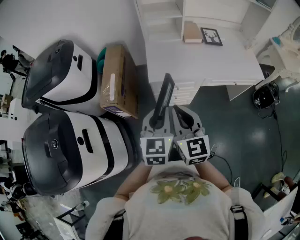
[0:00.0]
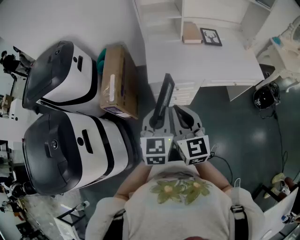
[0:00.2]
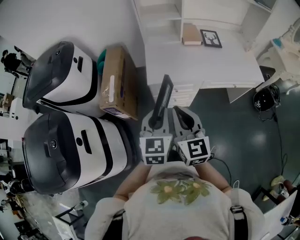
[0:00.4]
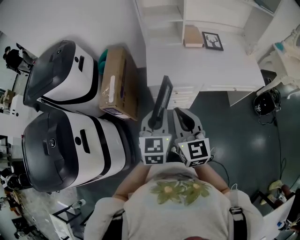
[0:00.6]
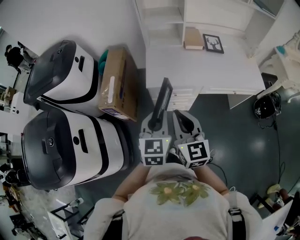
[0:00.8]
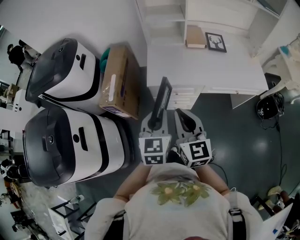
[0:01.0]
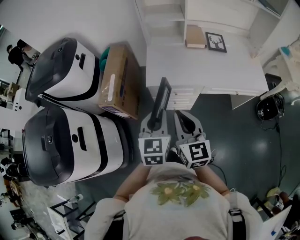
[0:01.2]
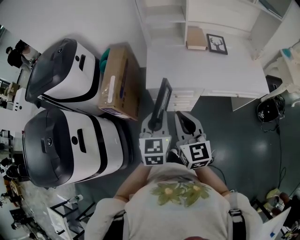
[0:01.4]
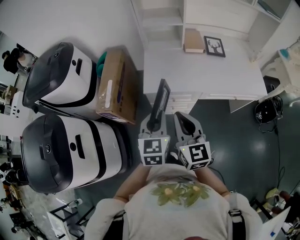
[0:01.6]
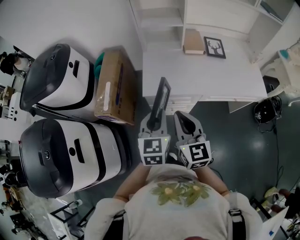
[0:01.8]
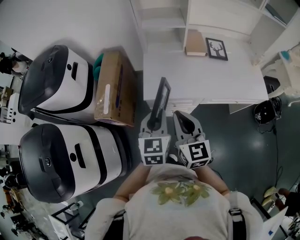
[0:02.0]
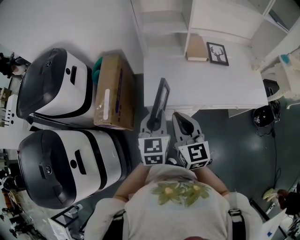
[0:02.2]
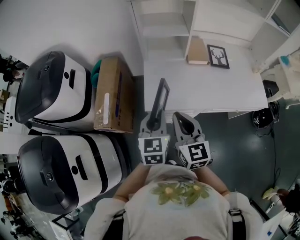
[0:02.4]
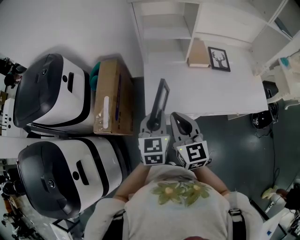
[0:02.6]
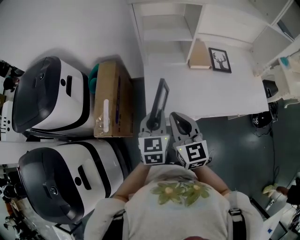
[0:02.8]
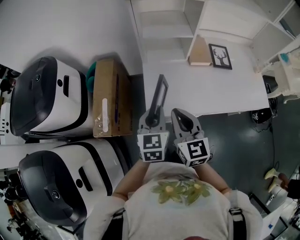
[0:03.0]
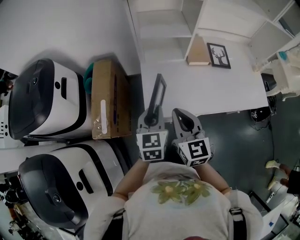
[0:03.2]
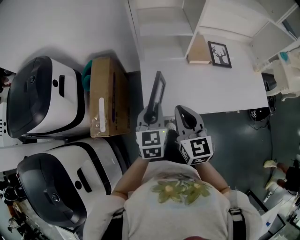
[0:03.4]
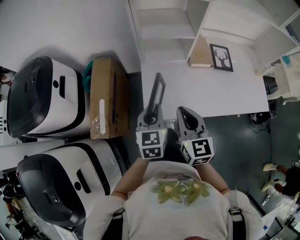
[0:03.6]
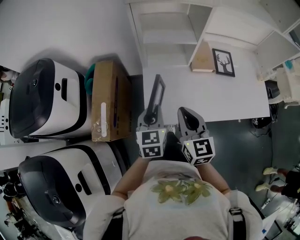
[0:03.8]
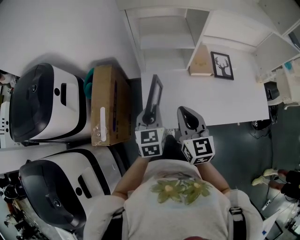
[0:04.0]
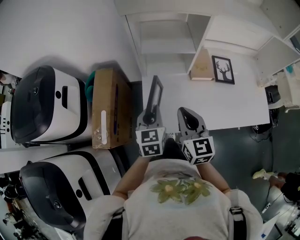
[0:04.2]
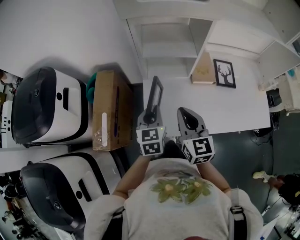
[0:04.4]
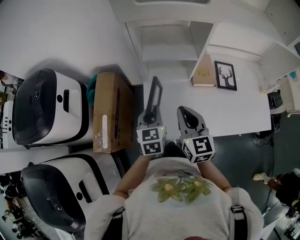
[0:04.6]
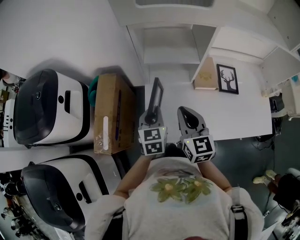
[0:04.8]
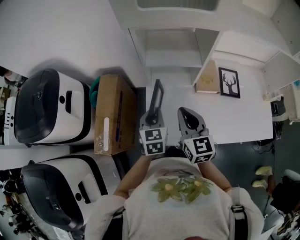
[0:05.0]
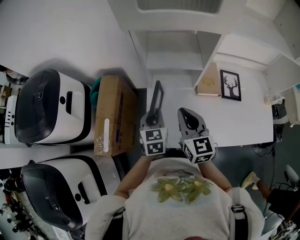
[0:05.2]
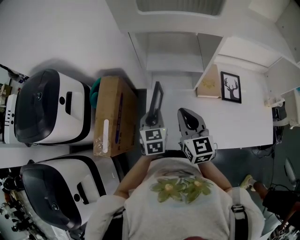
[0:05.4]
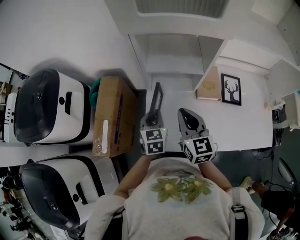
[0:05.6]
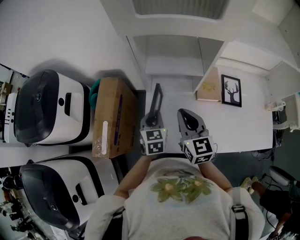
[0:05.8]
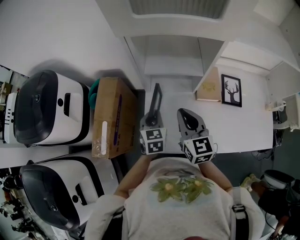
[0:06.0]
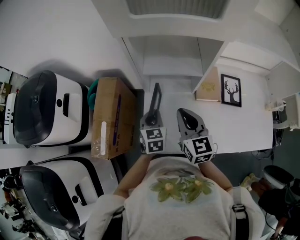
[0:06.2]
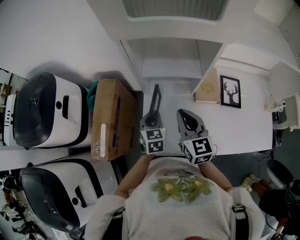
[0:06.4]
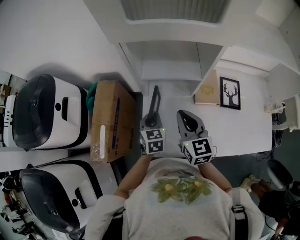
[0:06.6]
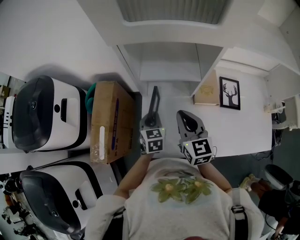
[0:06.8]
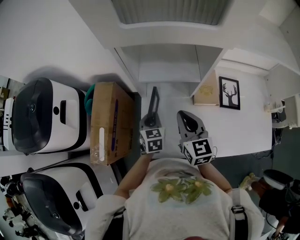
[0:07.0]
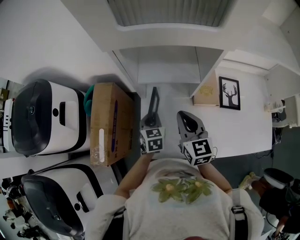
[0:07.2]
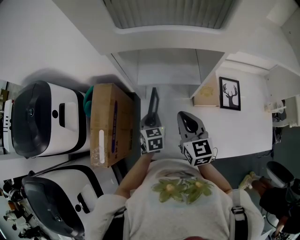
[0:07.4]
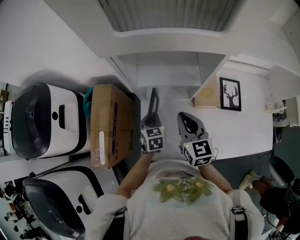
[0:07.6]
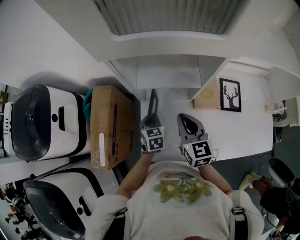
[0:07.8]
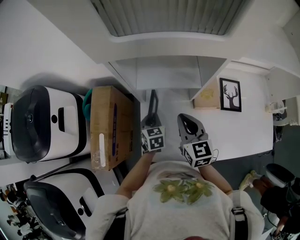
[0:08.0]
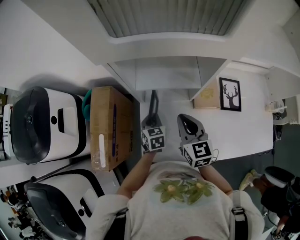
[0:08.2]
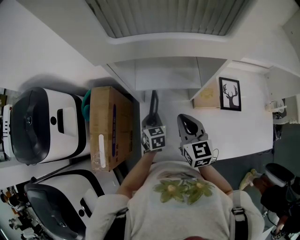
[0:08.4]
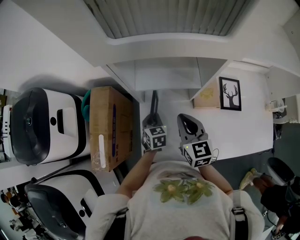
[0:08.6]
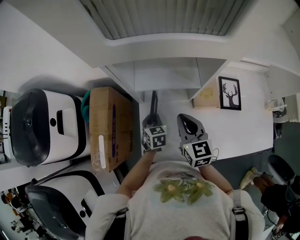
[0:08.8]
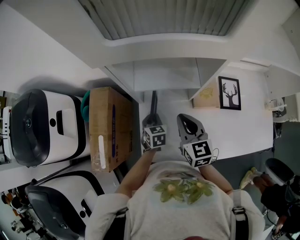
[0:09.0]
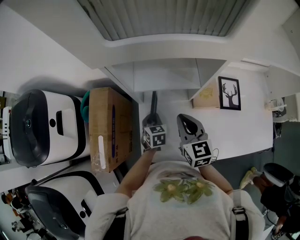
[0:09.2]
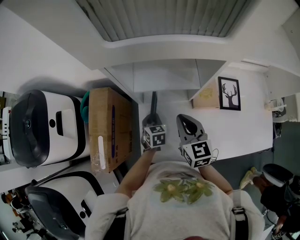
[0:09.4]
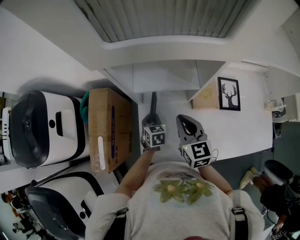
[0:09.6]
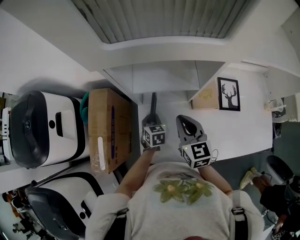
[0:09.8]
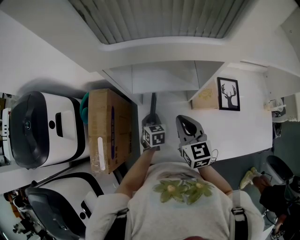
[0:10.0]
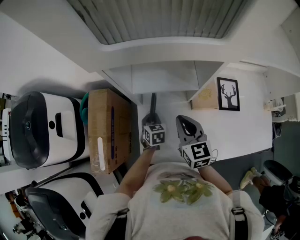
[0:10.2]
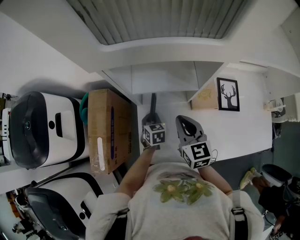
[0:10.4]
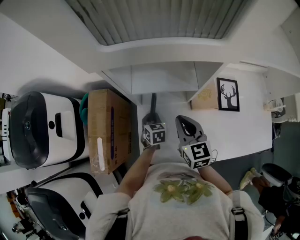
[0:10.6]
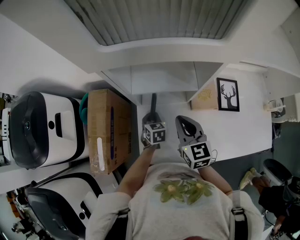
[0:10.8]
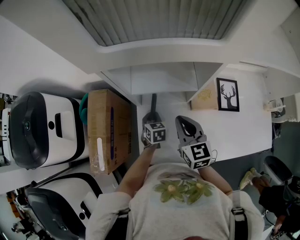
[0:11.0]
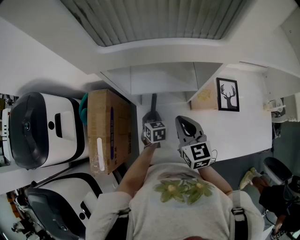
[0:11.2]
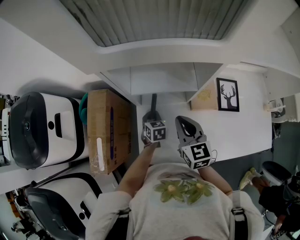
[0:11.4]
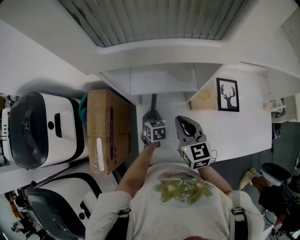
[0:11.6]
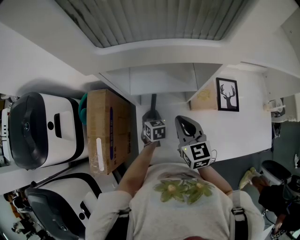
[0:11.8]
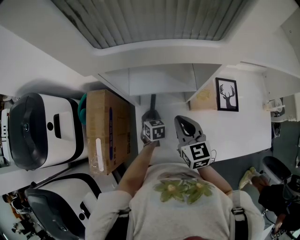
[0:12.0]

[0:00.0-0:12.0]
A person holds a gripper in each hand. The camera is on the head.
0:00.0 to 0:01.6: The right gripper moves to the right and forward, roughly 10 cm, while the left gripper is displaced forward and to the right by roughly 10 cm.
0:01.6 to 0:03.0: The two grippers go approximately 20 cm forward.
0:03.0 to 0:04.4: The grippers both shift forward by roughly 10 cm.
0:04.4 to 0:06.0: The left gripper shifts approximately 10 cm forward and downward. Meanwhile the right gripper heads forward, covering roughly 10 cm.
0:06.0 to 0:07.6: The right gripper changes place by roughly 5 cm. The left gripper travels downward and forward by roughly 10 cm.
0:07.6 to 0:09.0: The left gripper changes place by about 5 cm.
0:09.0 to 0:12.0: There are only small adjustments of the grippers.

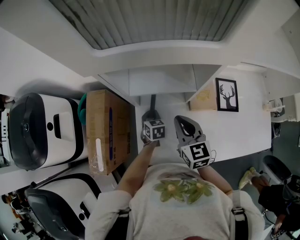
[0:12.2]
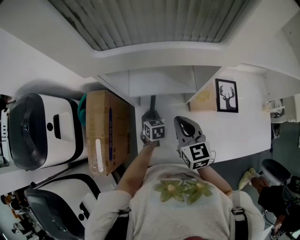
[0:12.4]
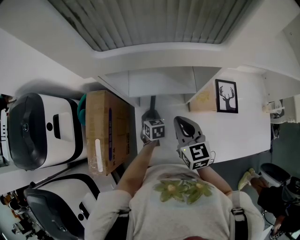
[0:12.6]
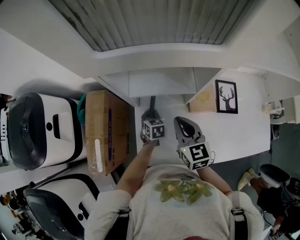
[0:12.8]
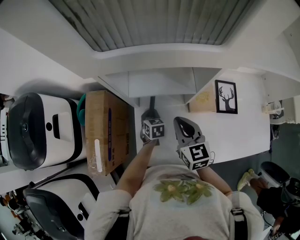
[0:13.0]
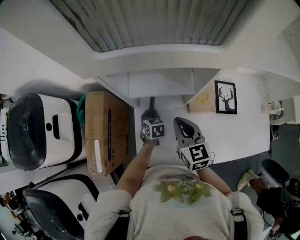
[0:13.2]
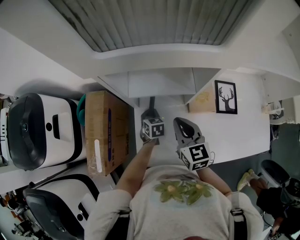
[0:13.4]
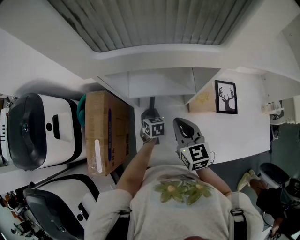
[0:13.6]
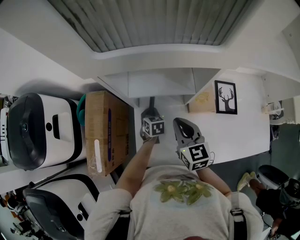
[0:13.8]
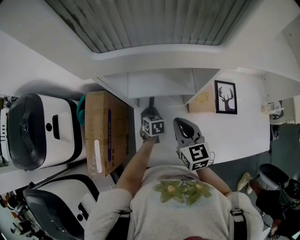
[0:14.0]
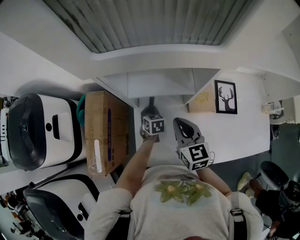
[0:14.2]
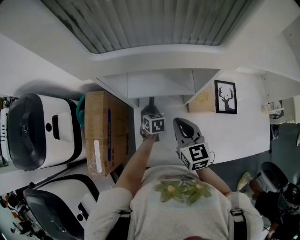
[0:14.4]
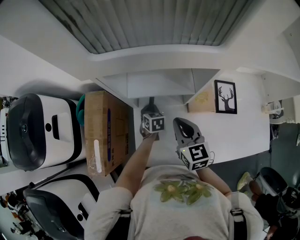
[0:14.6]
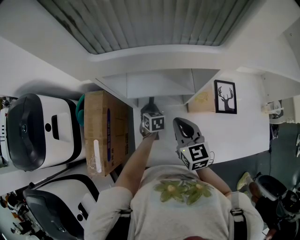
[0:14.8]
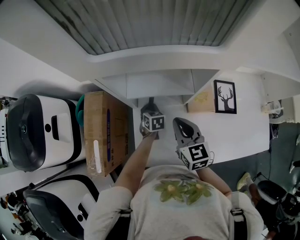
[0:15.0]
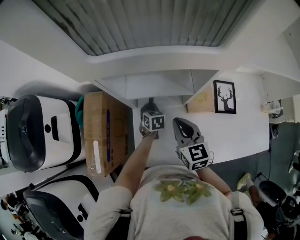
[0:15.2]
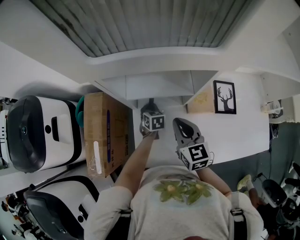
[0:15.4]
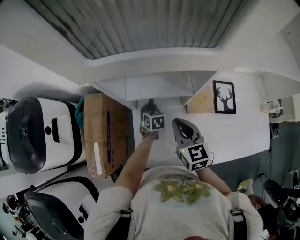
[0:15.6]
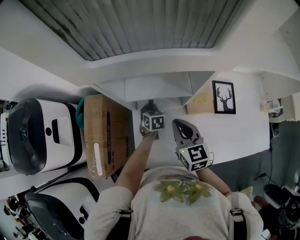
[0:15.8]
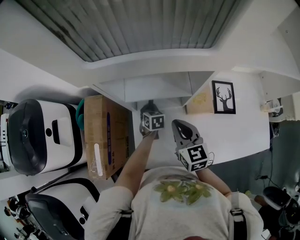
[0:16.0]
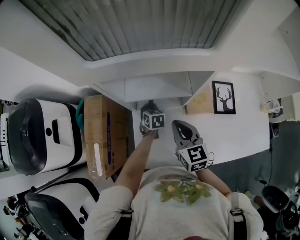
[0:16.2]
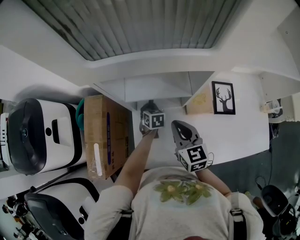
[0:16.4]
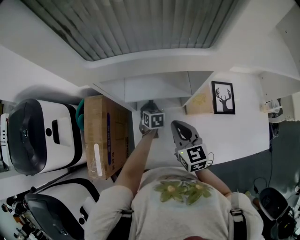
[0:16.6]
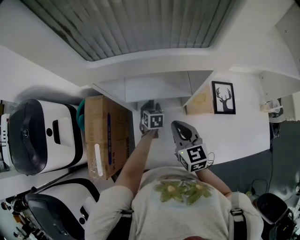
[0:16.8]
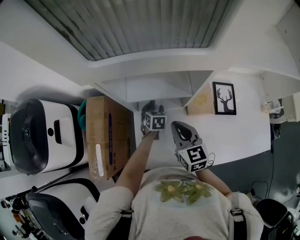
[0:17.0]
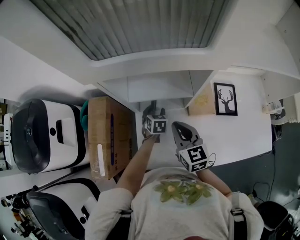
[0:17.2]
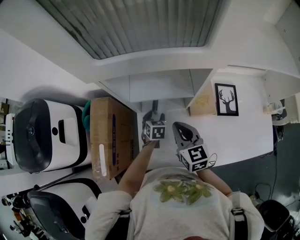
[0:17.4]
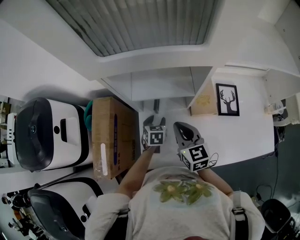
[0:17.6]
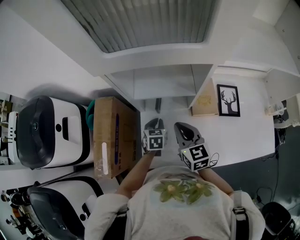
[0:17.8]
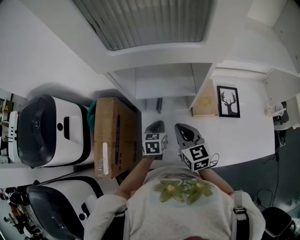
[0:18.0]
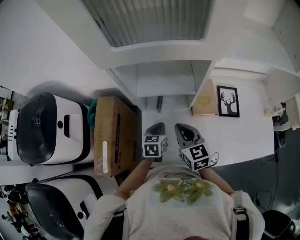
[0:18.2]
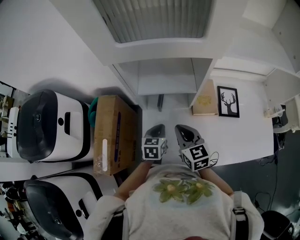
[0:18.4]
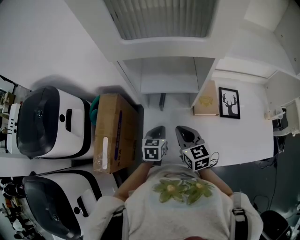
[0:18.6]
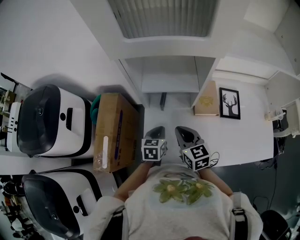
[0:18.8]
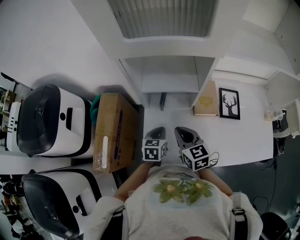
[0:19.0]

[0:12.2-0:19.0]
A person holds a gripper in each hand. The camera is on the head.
0:12.2 to 0:16.2: There are only small adjustments of the grippers.
0:16.2 to 0:17.6: The left gripper travels backward by roughly 5 cm, and opens its fingers.
0:17.6 to 0:19.0: The left gripper travels backward and upward by roughly 10 cm, and closes its fingers, while the right gripper is displaced backward by some 5 cm.

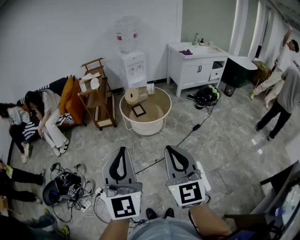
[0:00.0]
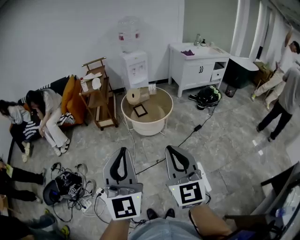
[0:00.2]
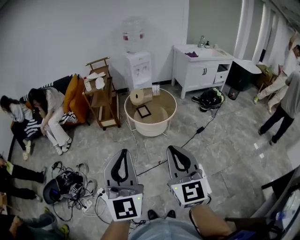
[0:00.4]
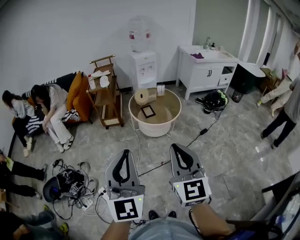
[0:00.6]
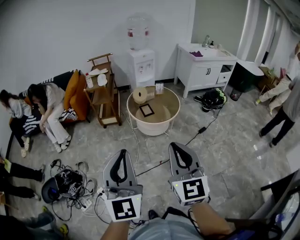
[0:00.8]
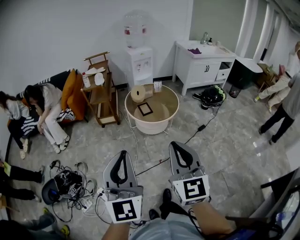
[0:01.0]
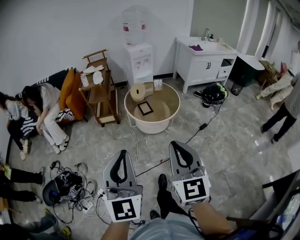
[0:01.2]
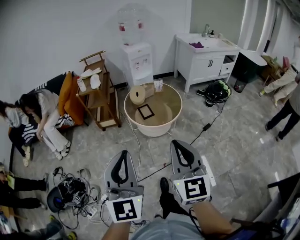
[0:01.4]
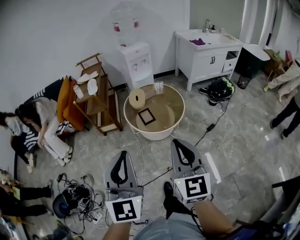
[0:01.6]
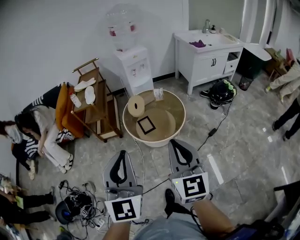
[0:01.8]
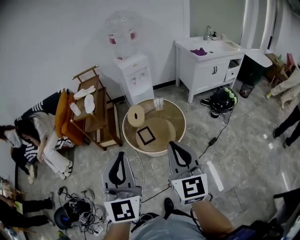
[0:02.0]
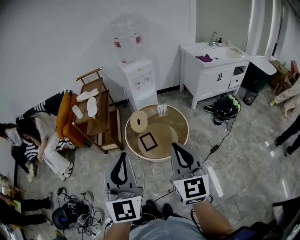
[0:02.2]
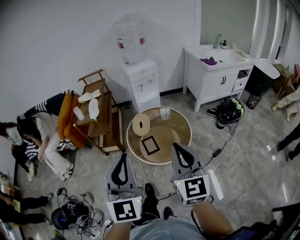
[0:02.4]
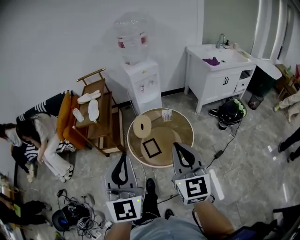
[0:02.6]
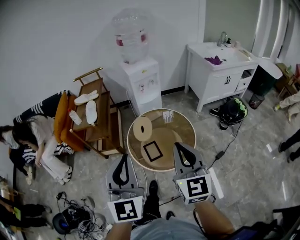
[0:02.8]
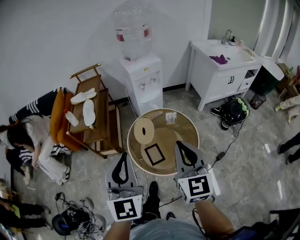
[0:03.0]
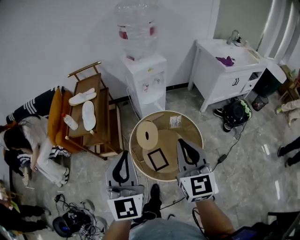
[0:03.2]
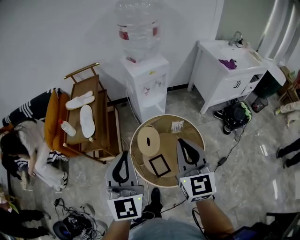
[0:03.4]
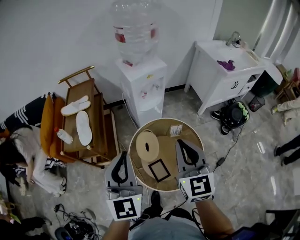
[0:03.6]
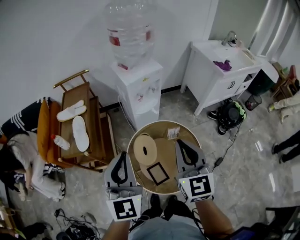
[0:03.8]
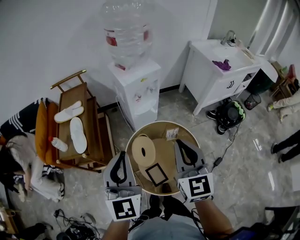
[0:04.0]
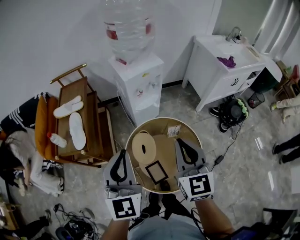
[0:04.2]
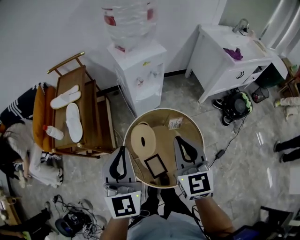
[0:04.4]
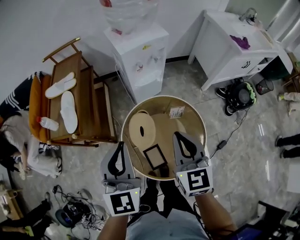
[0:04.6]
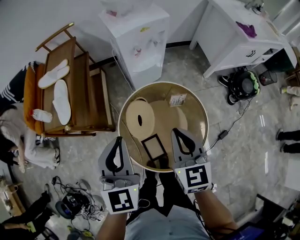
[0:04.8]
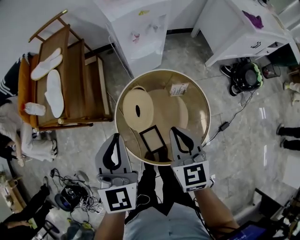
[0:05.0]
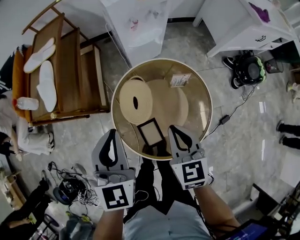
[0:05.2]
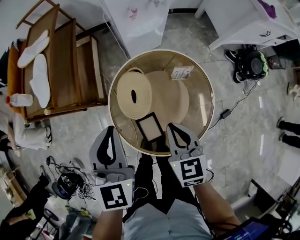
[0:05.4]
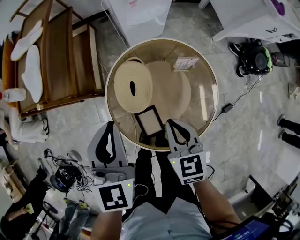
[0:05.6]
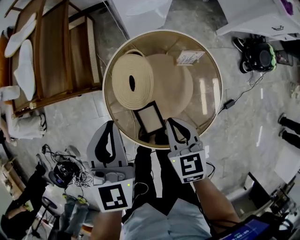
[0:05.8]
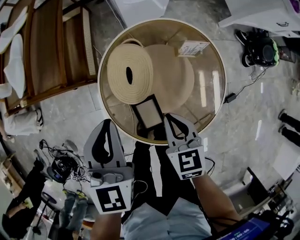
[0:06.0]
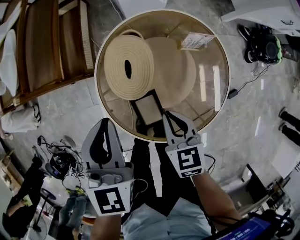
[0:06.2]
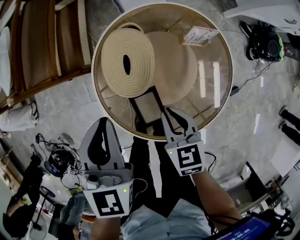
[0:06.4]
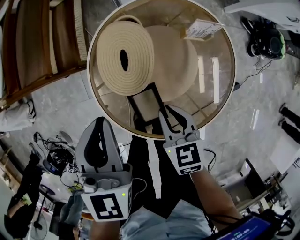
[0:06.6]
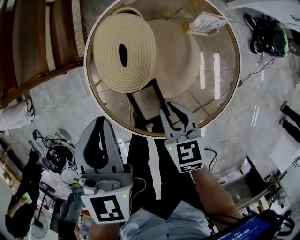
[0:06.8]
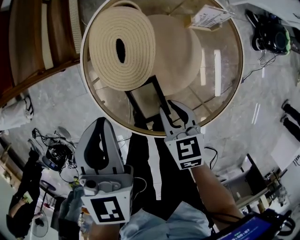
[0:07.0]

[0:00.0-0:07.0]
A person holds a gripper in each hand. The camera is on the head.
0:00.0 to 0:01.4: The two grippers go approximately 20 cm forward.
0:01.4 to 0:02.8: The two grippers travel together, forward, approximately 40 cm.
0:02.8 to 0:04.2: The grippers both shift forward by roughly 35 cm.
0:04.2 to 0:05.6: Both grippers move downward, about 30 cm. The left gripper turns by approximately 20 degrees. Meanwhile the right gripper rotates some 30 degrees.
0:05.6 to 0:07.0: The two grippers go about 20 cm downward. The right gripper opens up.
